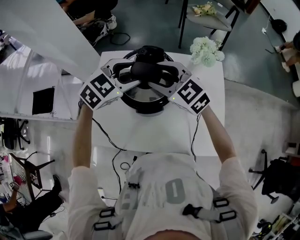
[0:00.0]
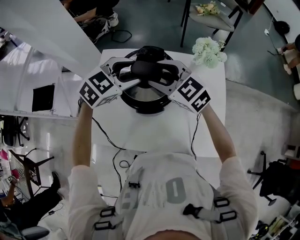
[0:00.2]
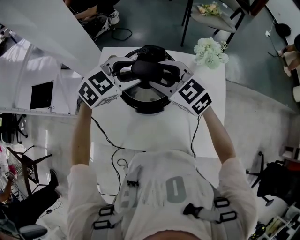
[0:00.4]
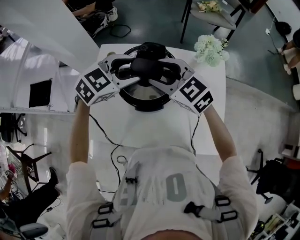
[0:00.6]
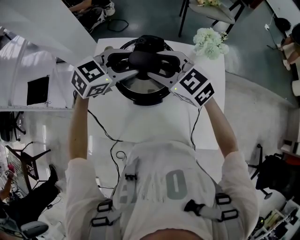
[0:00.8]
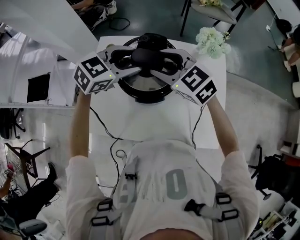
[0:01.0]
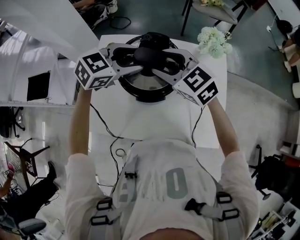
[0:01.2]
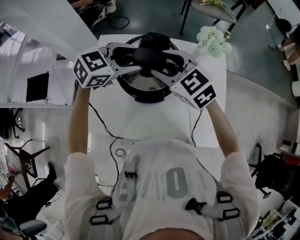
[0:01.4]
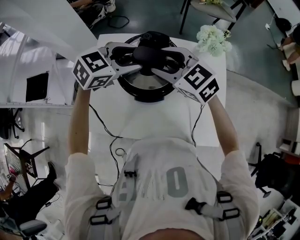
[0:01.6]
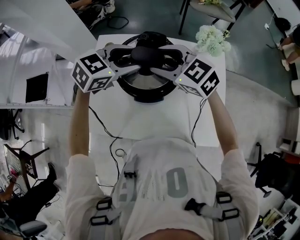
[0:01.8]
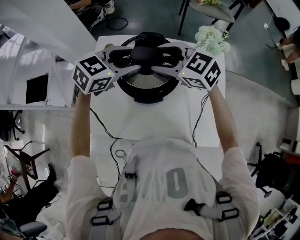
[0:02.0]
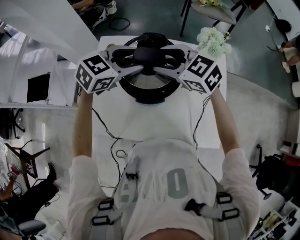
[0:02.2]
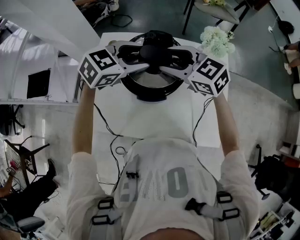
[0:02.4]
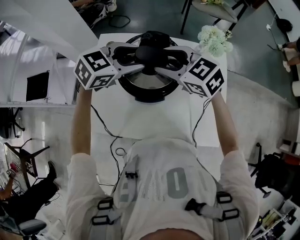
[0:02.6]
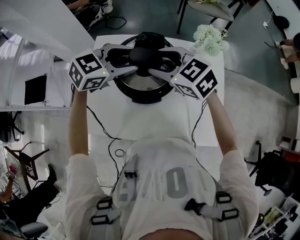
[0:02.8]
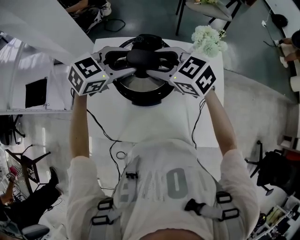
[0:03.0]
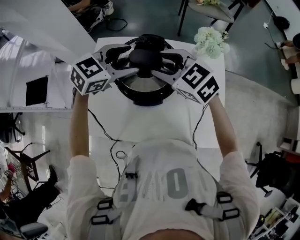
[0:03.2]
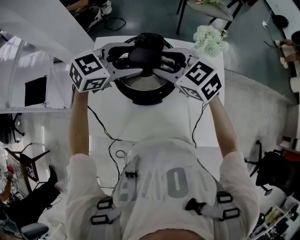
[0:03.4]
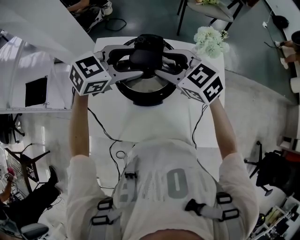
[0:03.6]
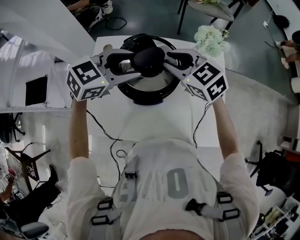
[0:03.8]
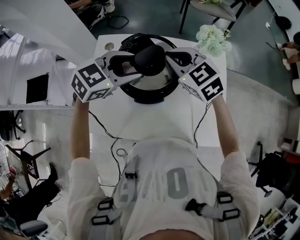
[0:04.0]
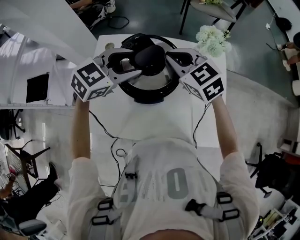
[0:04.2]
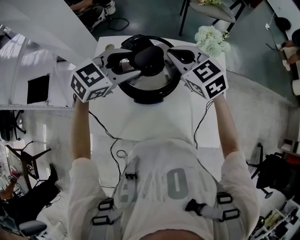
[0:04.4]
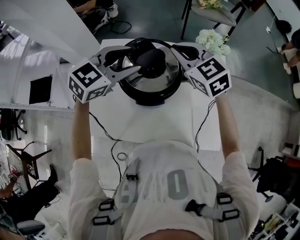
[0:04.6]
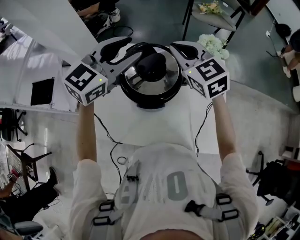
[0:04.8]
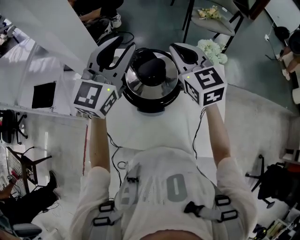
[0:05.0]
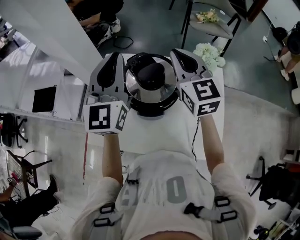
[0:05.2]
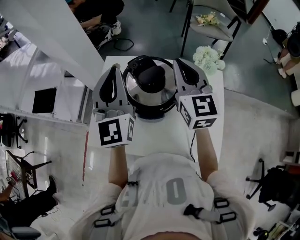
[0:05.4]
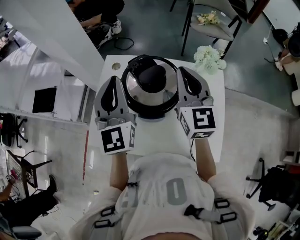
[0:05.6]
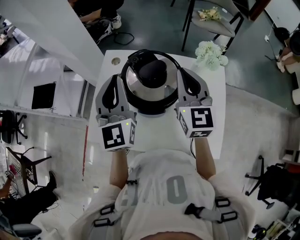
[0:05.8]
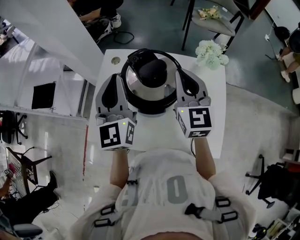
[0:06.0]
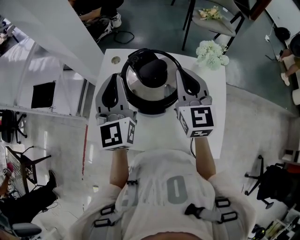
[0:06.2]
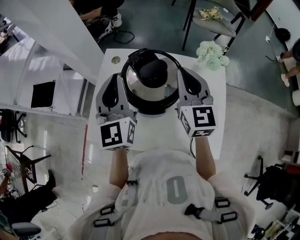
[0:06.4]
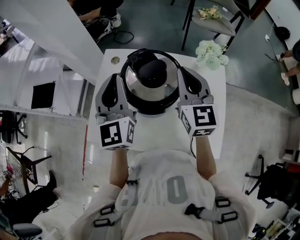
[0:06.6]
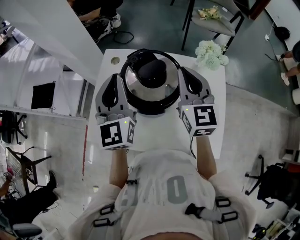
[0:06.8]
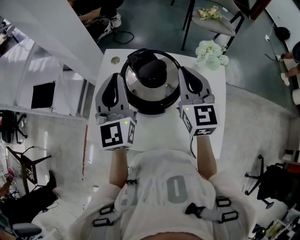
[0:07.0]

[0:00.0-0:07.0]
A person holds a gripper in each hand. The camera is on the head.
0:00.0 to 0:02.8: The grippers make only small movements.
0:02.8 to 0:04.2: The right gripper closes up.
0:04.2 to 0:05.6: The left gripper travels upward and to the left by some 15 cm, tilts its fingers about 40 degrees upward, and closes up, while the right gripper goes approximately 10 cm upward, and swivels some 40 degrees.
0:05.6 to 0:07.0: The grippers move only a little.

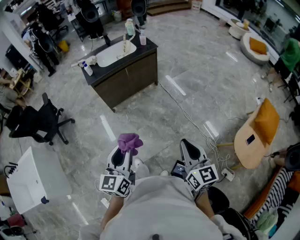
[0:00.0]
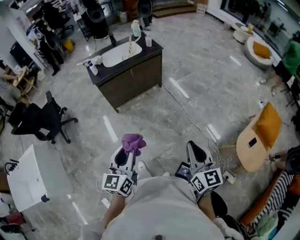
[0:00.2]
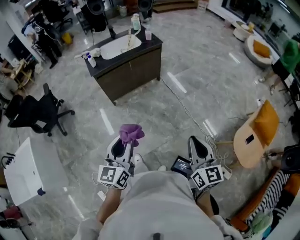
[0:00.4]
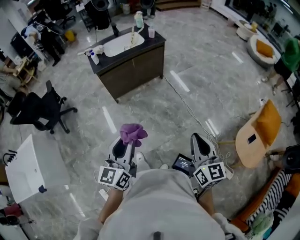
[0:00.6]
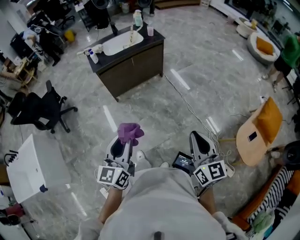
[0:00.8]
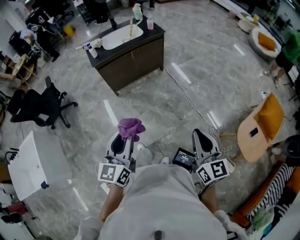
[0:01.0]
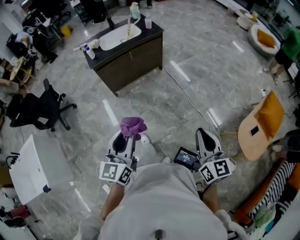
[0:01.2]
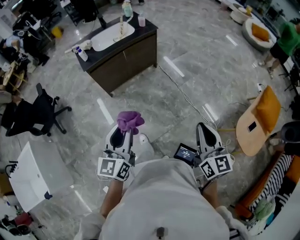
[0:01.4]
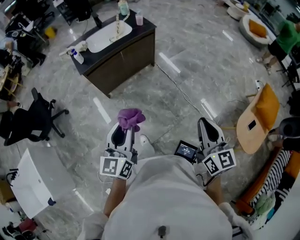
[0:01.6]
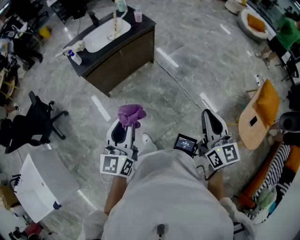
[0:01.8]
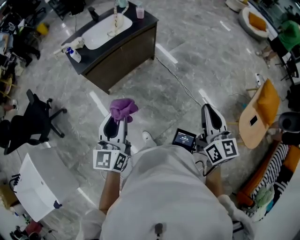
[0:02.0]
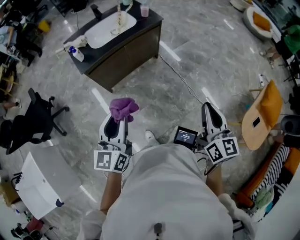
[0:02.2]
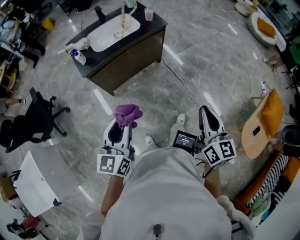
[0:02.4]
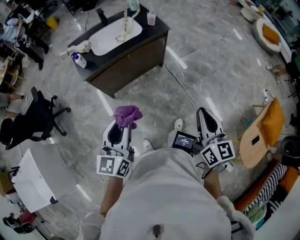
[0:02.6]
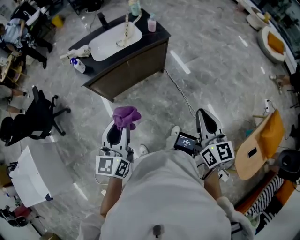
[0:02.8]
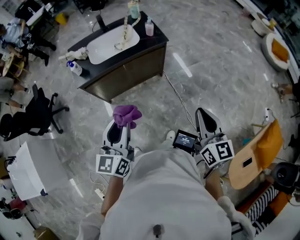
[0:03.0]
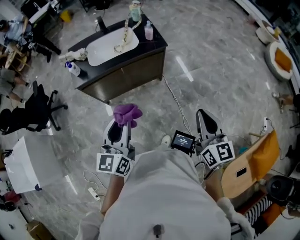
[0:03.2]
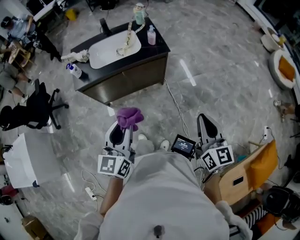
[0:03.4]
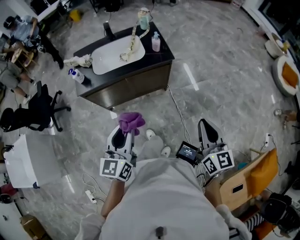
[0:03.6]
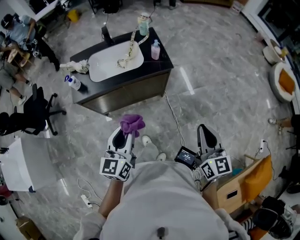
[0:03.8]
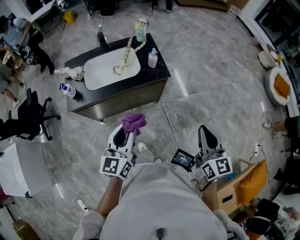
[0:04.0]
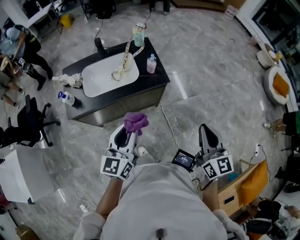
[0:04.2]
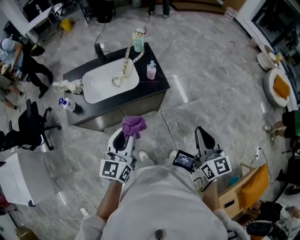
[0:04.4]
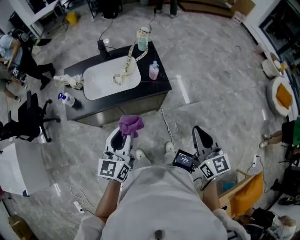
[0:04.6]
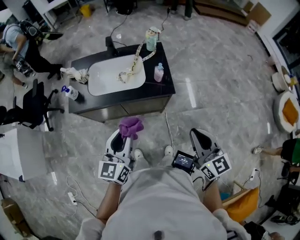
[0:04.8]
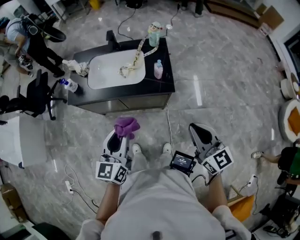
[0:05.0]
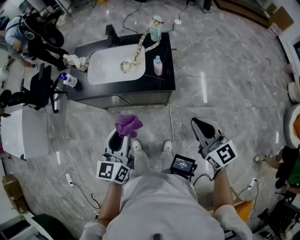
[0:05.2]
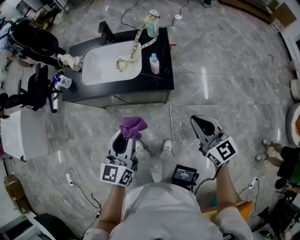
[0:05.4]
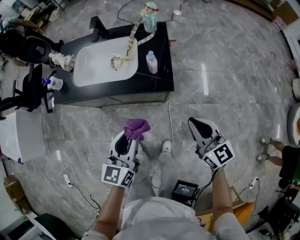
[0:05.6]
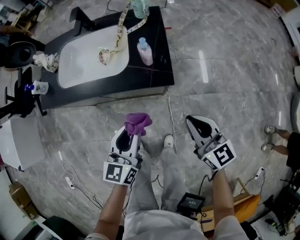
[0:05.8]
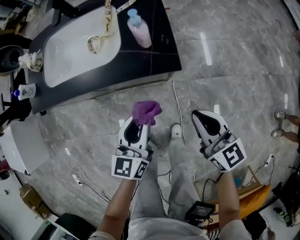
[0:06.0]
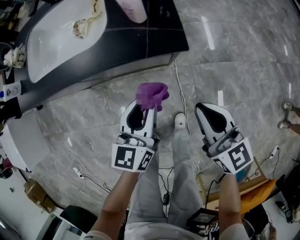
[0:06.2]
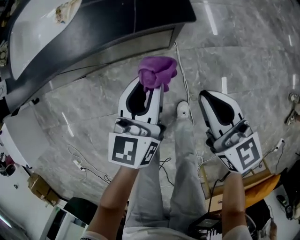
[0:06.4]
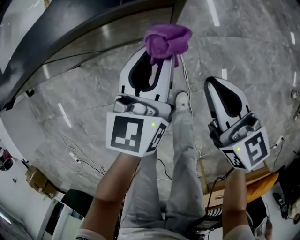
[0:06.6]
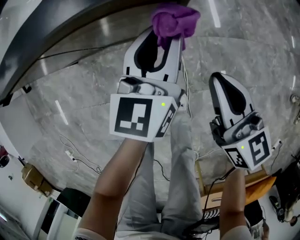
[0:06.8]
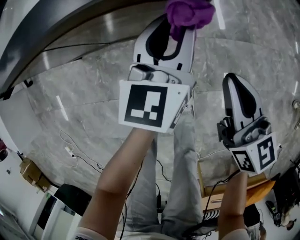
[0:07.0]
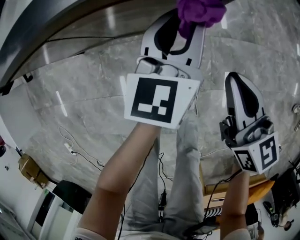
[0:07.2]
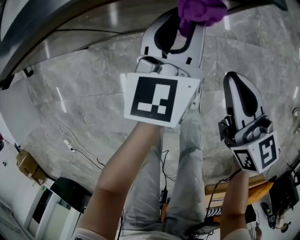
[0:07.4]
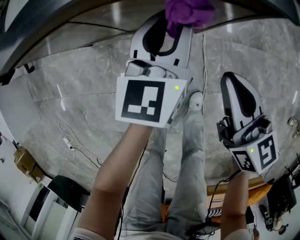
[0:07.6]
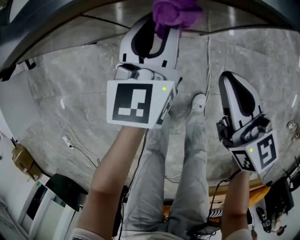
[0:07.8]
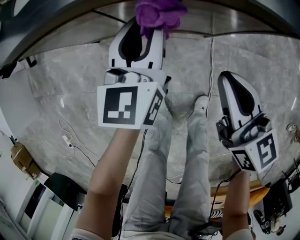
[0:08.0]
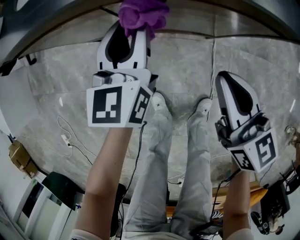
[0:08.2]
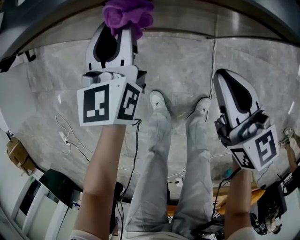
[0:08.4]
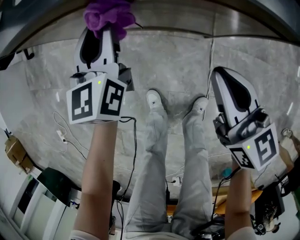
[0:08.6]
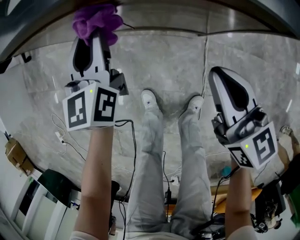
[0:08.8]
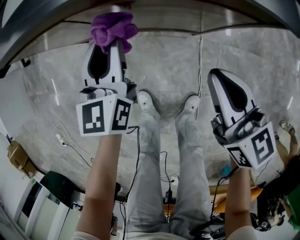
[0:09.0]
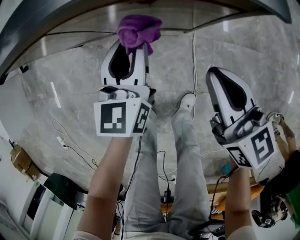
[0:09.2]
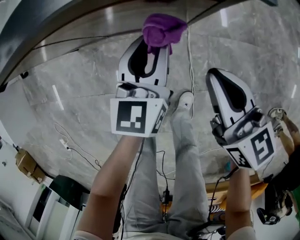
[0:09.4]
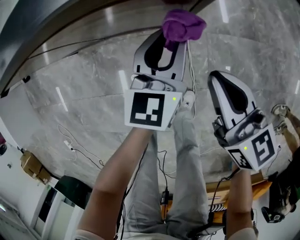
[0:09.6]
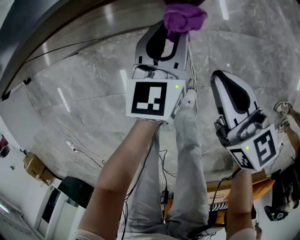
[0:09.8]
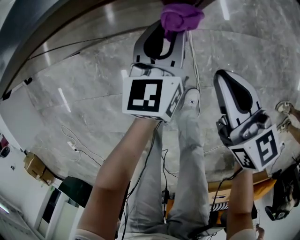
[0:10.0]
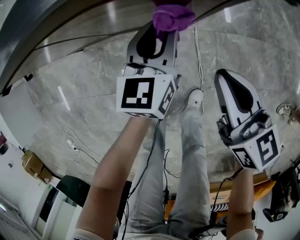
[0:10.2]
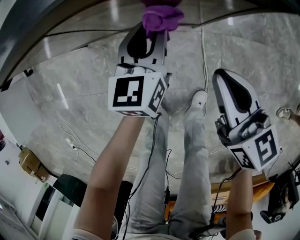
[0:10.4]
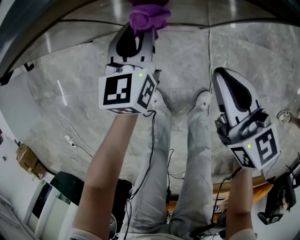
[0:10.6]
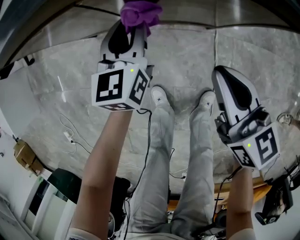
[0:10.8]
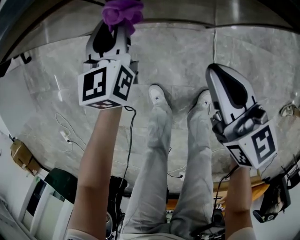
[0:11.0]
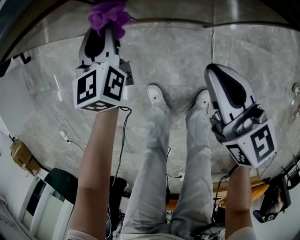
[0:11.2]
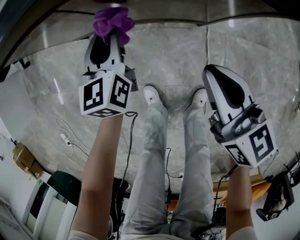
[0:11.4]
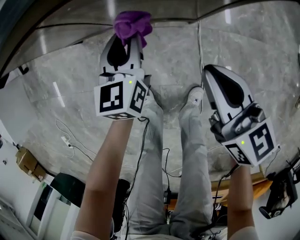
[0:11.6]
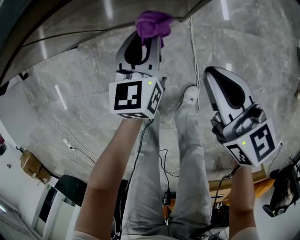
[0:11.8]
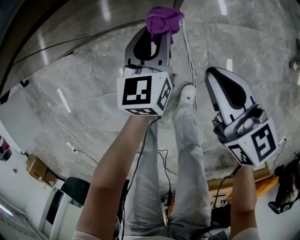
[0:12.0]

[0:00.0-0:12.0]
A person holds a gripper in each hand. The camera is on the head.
0:00.0 to 0:01.6: The grippers both shift forward by approximately 10 cm.
0:01.6 to 0:03.0: The grippers both shift forward by roughly 30 cm.
0:03.0 to 0:04.4: Both grippers travel together forward, about 25 cm.
0:04.4 to 0:06.0: The two grippers go about 30 cm downward. The right gripper swivels some 30 degrees.
0:06.0 to 0:07.6: The right gripper heads downward and to the left, covering about 20 cm. The left gripper travels downward and forward by roughly 20 cm.
0:07.6 to 0:09.0: The left gripper shifts some 15 cm to the left. Meanwhile the right gripper reaches some 10 cm to the left, then returns.
0:09.0 to 0:10.4: The left gripper shifts approximately 15 cm to the right and downward. Meanwhile the right gripper travels to the right and back again, about 10 cm each way.
0:10.4 to 0:12.0: The right gripper shifts about 10 cm to the right. The left gripper heads to the right, backward and downward, covering approximately 15 cm.

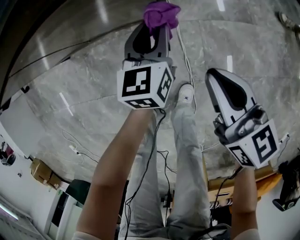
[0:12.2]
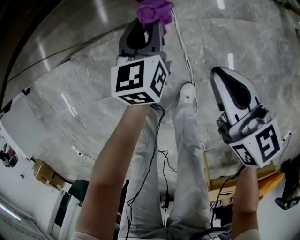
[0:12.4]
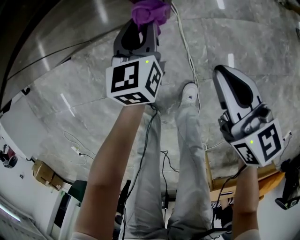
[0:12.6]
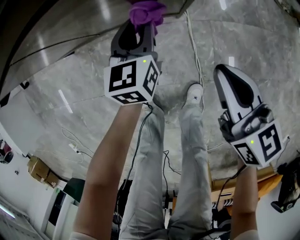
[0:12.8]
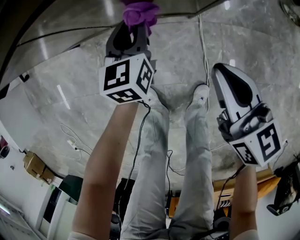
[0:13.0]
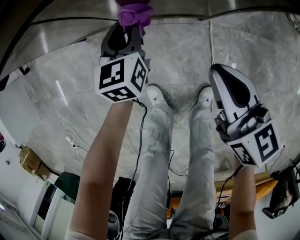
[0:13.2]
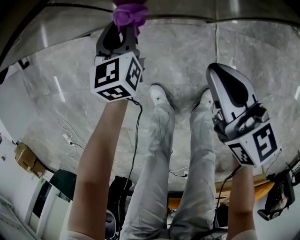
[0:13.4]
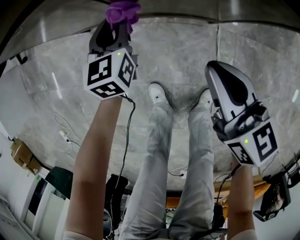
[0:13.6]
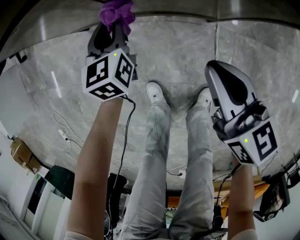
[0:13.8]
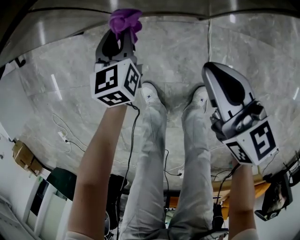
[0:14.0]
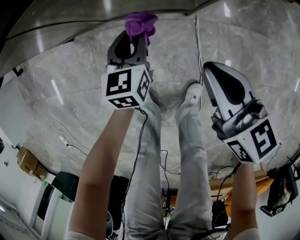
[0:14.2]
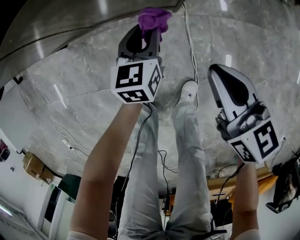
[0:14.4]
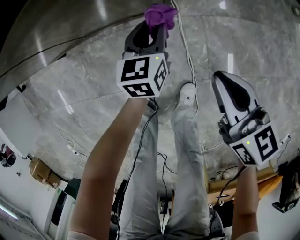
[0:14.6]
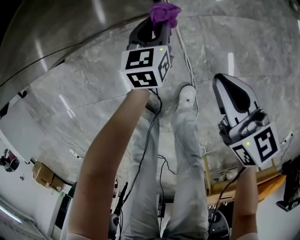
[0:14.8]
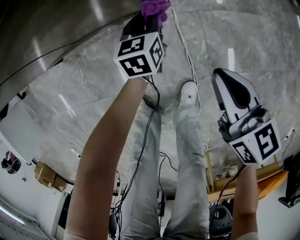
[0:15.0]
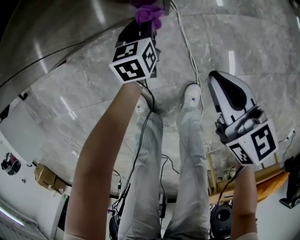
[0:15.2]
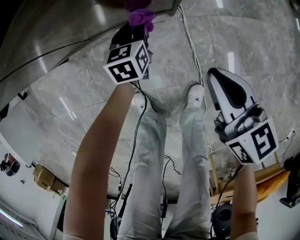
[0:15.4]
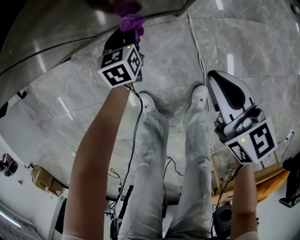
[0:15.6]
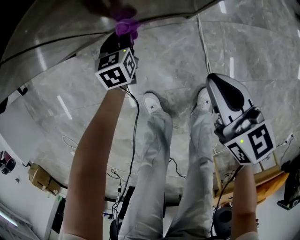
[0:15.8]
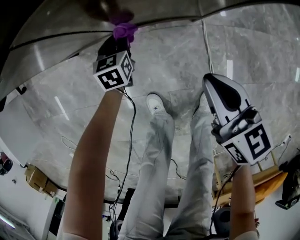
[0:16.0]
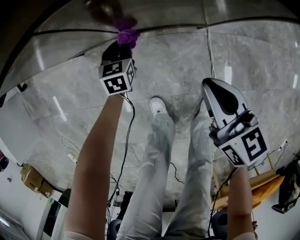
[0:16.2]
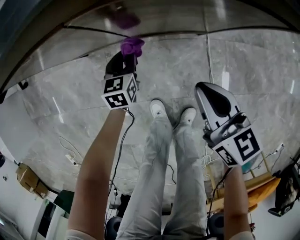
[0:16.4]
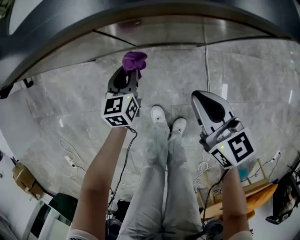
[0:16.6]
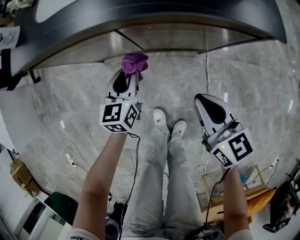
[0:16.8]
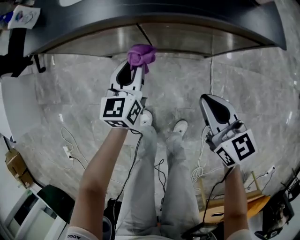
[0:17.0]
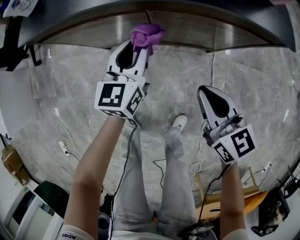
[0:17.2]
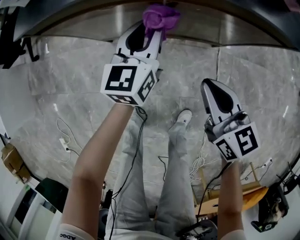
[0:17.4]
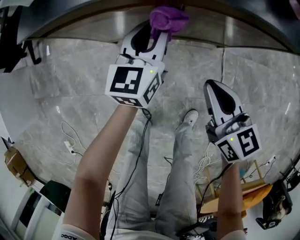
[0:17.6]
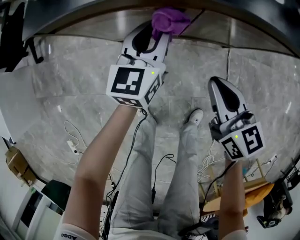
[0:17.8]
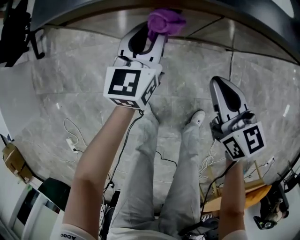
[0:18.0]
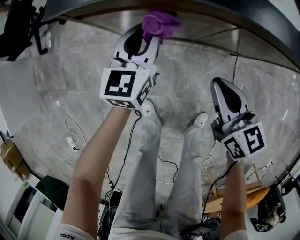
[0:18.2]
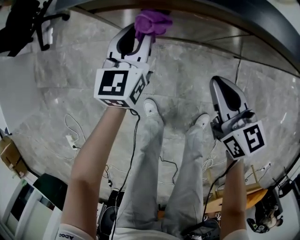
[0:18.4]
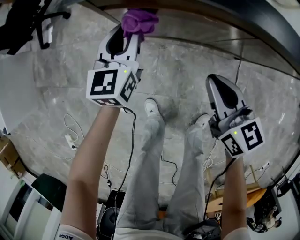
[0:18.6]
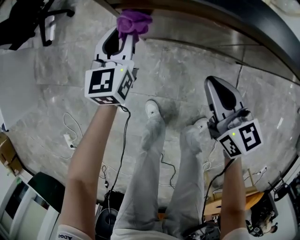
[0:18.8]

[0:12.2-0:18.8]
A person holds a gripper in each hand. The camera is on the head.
0:12.2 to 0:13.8: The left gripper heads to the left, covering about 35 cm, and rotates some 20 degrees. Meanwhile the right gripper is displaced to the left by approximately 20 cm.
0:13.8 to 0:15.4: The right gripper heads to the right and backward, covering roughly 15 cm; the left gripper shifts approximately 25 cm to the right and downward, and turns by roughly 20 degrees.
0:15.4 to 0:17.2: The right gripper moves to the left and upward, about 30 cm; the left gripper goes approximately 40 cm upward and to the left, and changes its angle by some 30 degrees.
0:17.2 to 0:18.8: Both grippers travel together to the left, about 30 cm.
